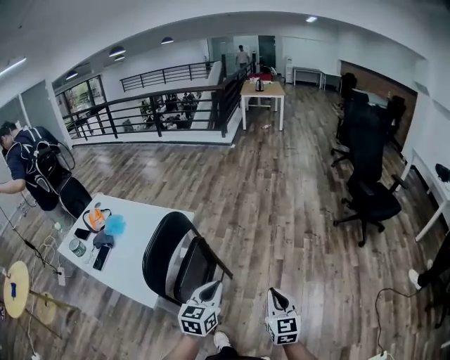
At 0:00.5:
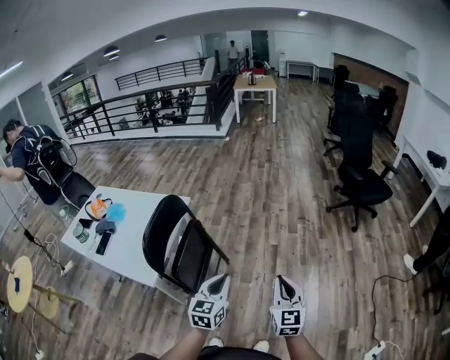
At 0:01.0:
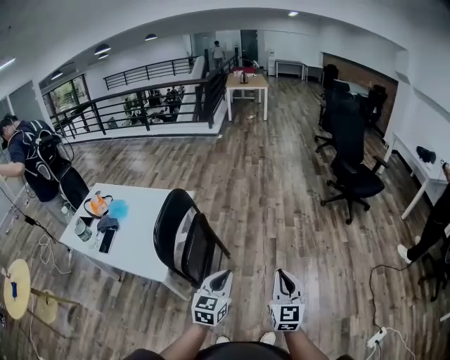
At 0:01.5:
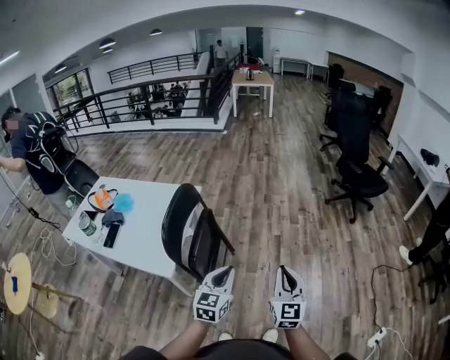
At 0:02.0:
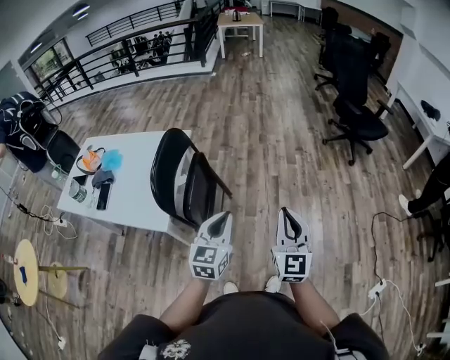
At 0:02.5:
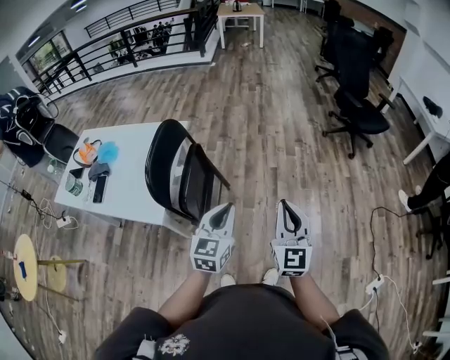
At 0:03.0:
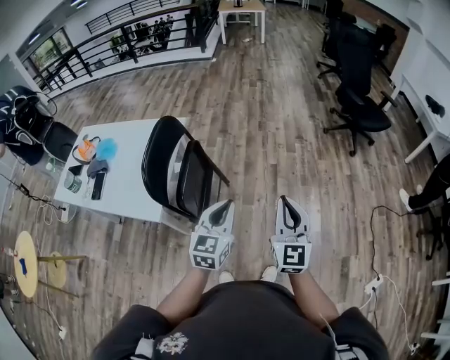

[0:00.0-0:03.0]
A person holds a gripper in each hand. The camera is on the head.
0:00.0 to 0:01.5: Both grippers travel together backward, approximately 15 cm.
0:01.5 to 0:03.0: The left gripper changes place by about 5 cm.

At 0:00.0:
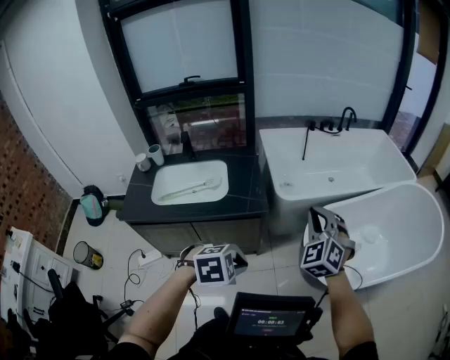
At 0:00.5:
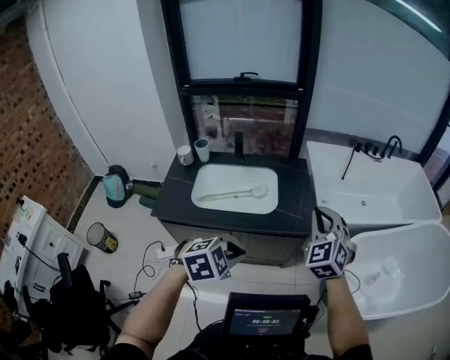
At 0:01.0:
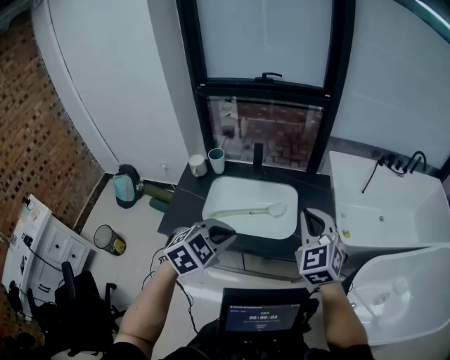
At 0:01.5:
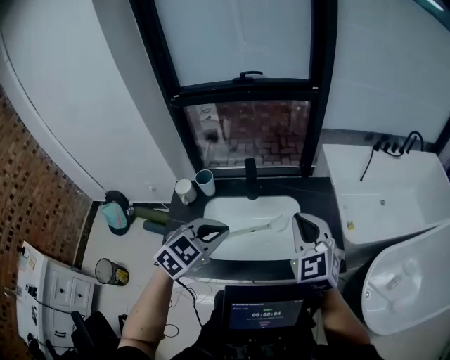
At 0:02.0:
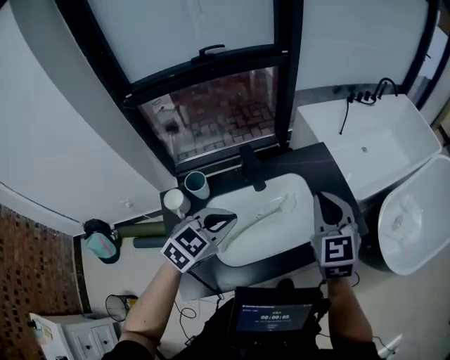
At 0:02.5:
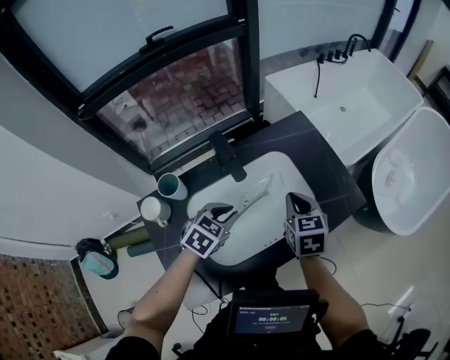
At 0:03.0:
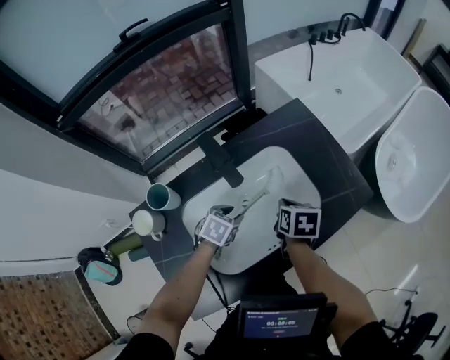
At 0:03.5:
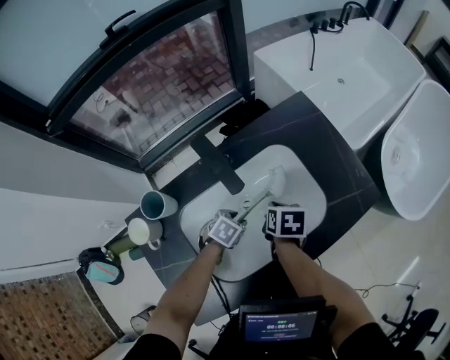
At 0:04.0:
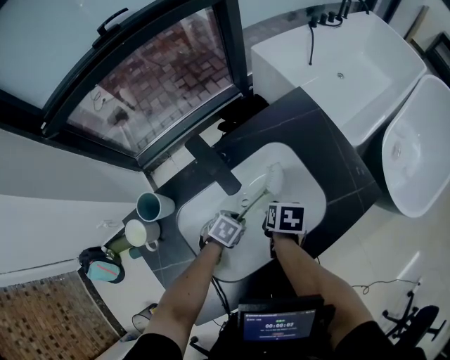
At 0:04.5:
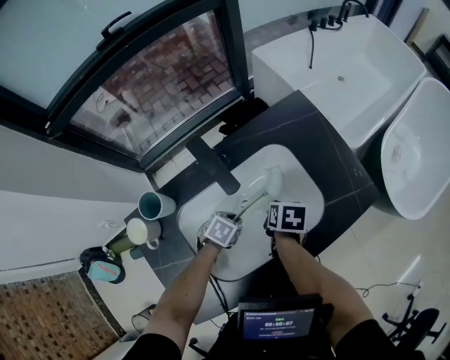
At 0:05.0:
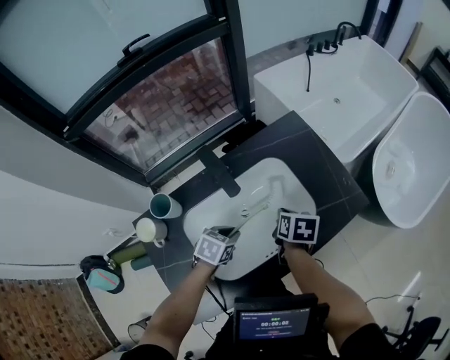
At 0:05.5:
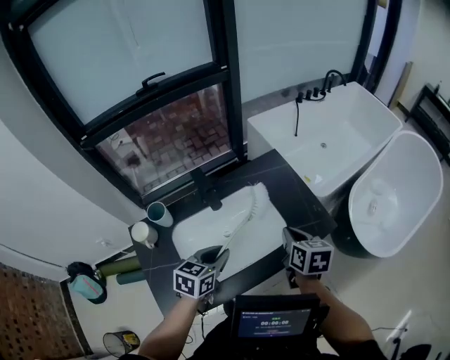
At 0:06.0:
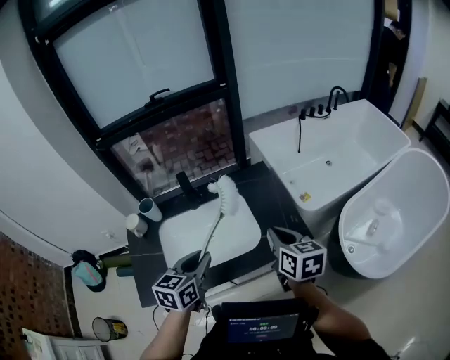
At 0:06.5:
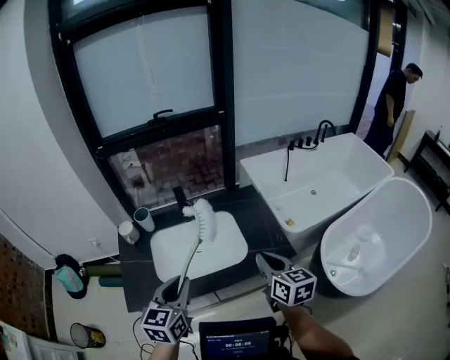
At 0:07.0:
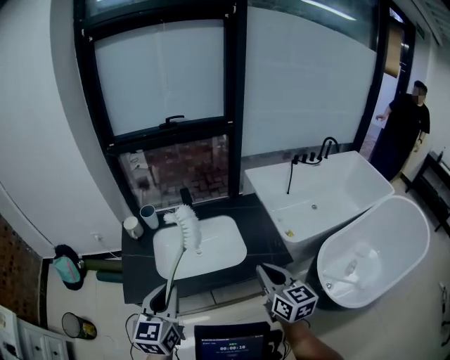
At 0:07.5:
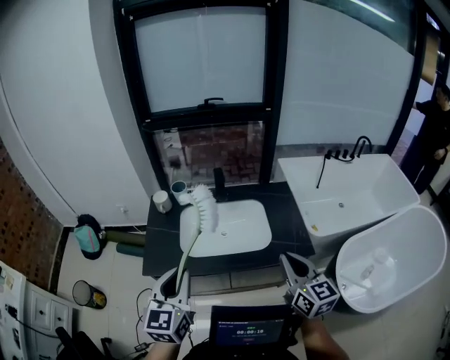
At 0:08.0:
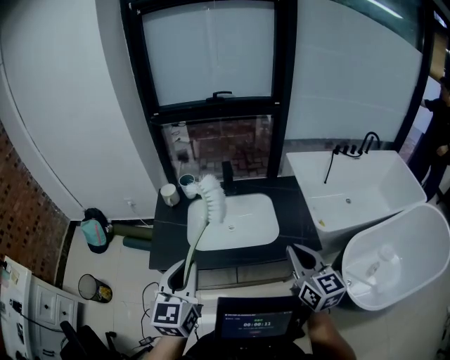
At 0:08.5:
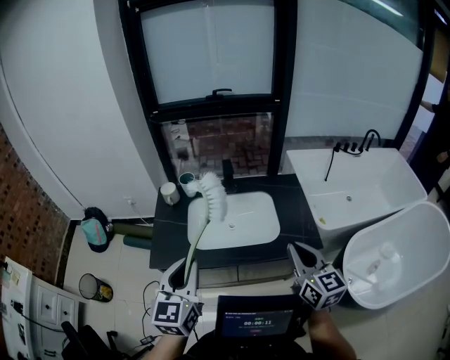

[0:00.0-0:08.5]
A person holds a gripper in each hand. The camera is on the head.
0:00.0 to 0:02.0: The pair of grippers is taken some 90 cm. The right gripper swivels about 40 degrees. The left gripper turns by approximately 30 degrees.
0:02.0 to 0:04.0: The right gripper is displaced downward by roughly 40 cm, and angles its fingers downward, by approximately 50 degrees; the left gripper shifts roughly 50 cm downward and forward, tilts its fingers some 40 degrees downward, and opens up.
0:04.0 to 0:06.5: The pair of grippers is taken some 40 cm. Both grippers move upward, some 50 cm. The left gripper tips its fingers upward by some 50 degrees; the right gripper angles its fingers upward, by approximately 50 degrees.
0:06.5 to 0:08.5: Both grippers move backward and to the left, approximately 15 cm. The left gripper changes its angle by about 20 degrees.

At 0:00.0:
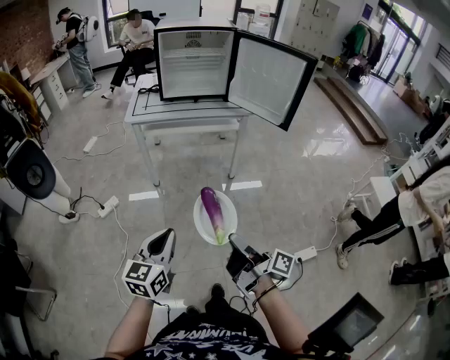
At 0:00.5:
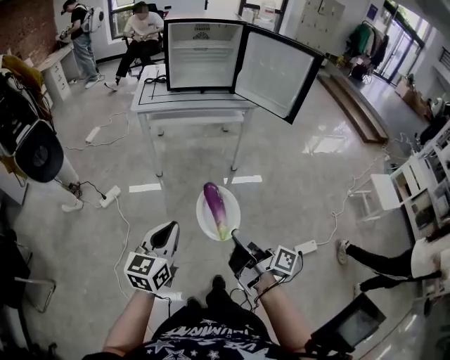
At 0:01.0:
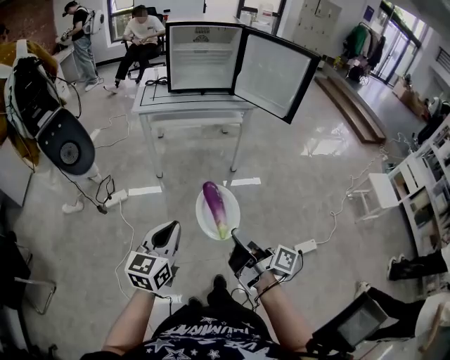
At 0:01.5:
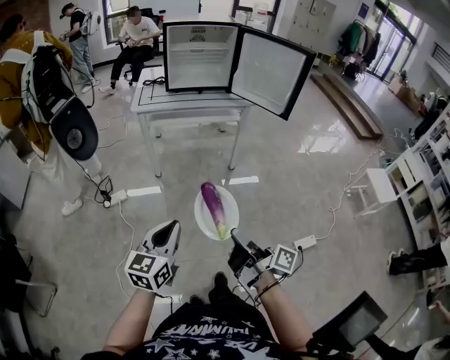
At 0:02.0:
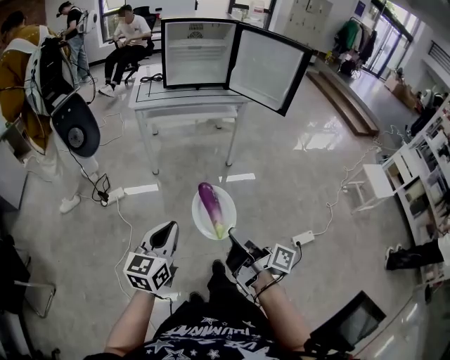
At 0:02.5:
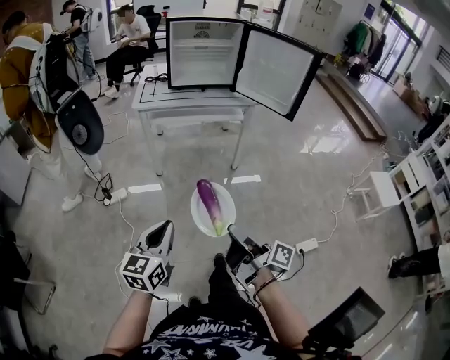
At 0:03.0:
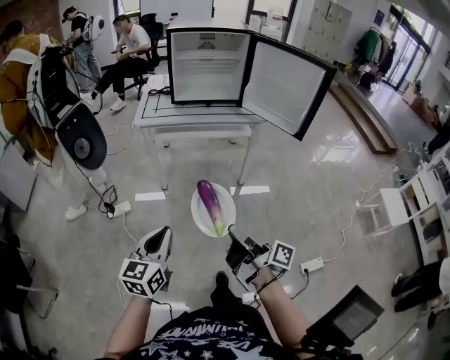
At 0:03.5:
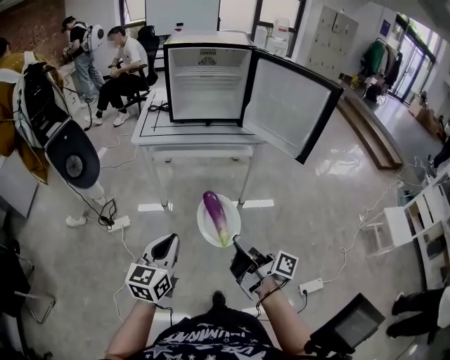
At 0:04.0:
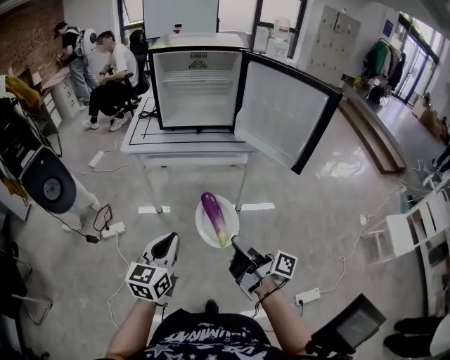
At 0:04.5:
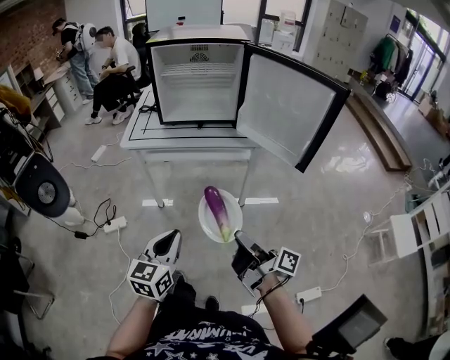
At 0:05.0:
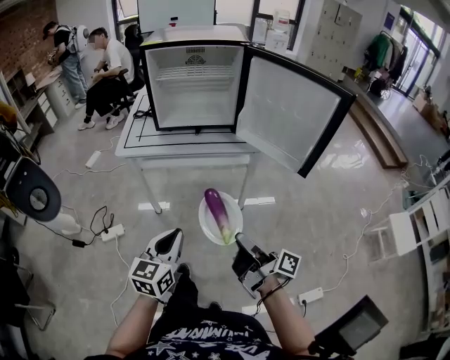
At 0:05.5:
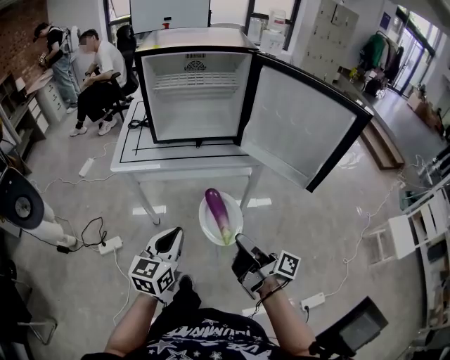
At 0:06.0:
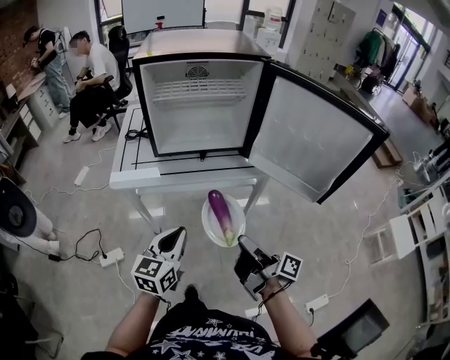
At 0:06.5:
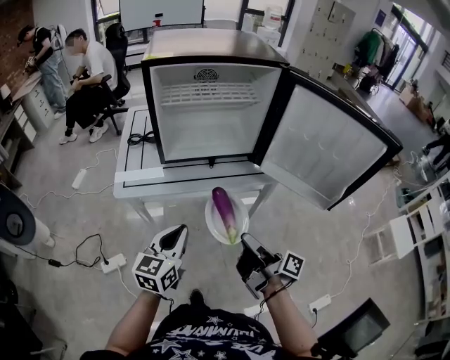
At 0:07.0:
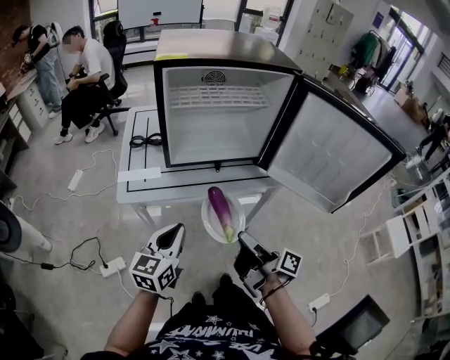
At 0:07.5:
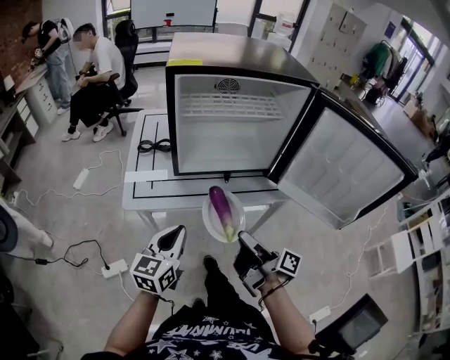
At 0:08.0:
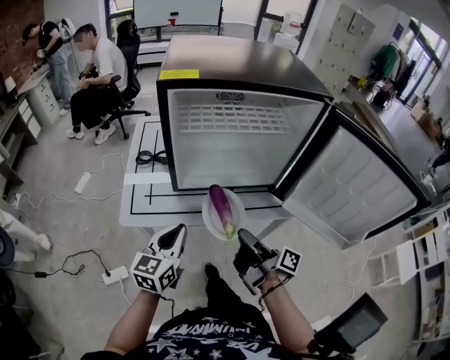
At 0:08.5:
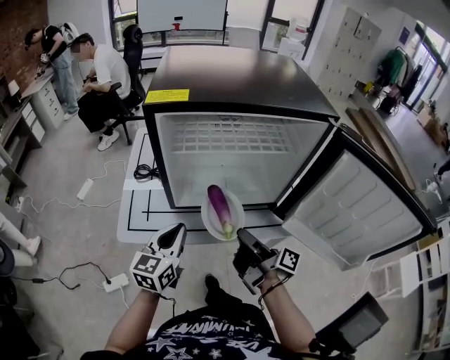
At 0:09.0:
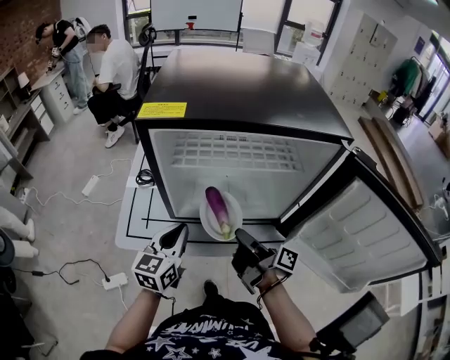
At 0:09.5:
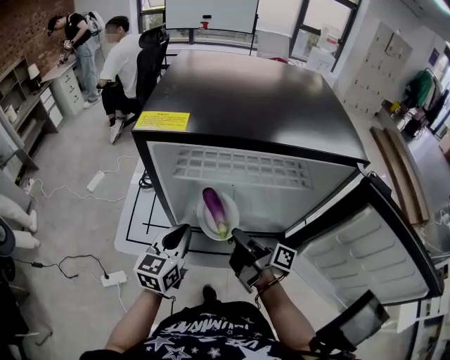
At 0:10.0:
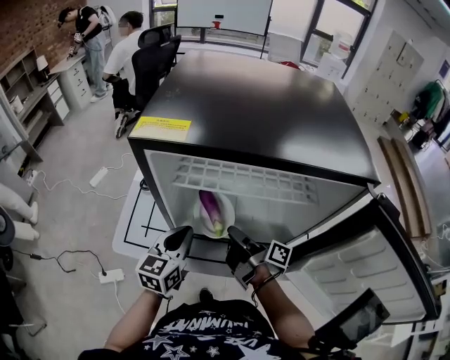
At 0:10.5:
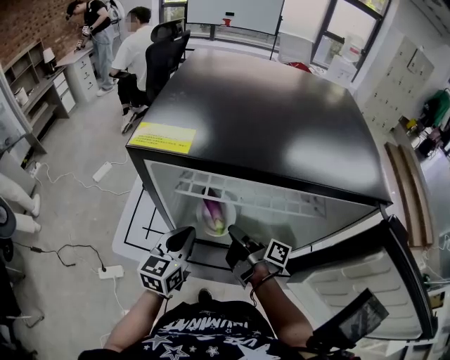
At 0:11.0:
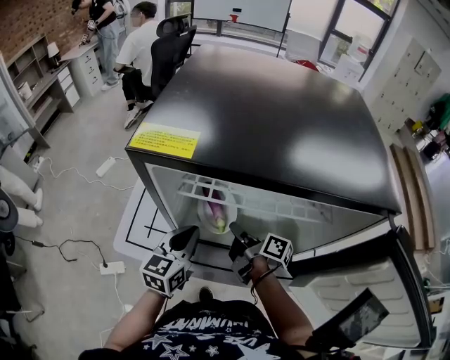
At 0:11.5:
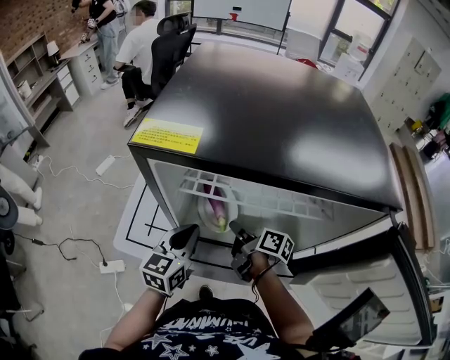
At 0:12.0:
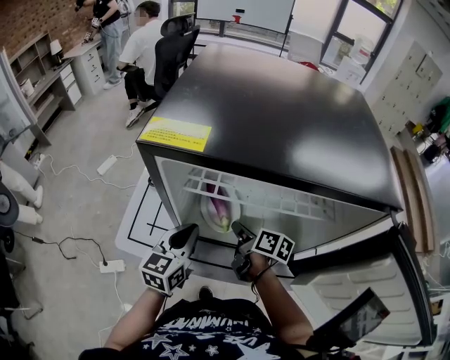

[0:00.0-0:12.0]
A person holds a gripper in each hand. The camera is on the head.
0:00.0 to 0:02.0: The left gripper shifts by some 10 cm.
0:02.0 to 0:04.0: The left gripper ends up about 30 cm from where it was.
0:04.0 to 0:06.0: The left gripper shifts by about 25 cm.
0:06.0 to 0:08.0: The left gripper shifts by roughly 20 cm.
0:08.0 to 0:10.0: The left gripper shifts by roughly 20 cm.

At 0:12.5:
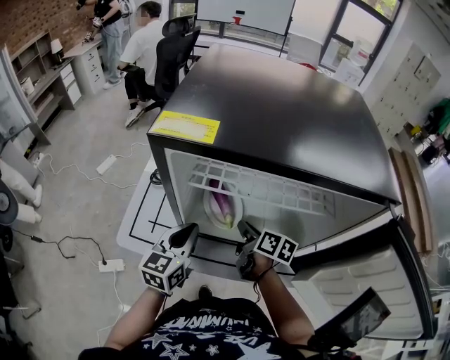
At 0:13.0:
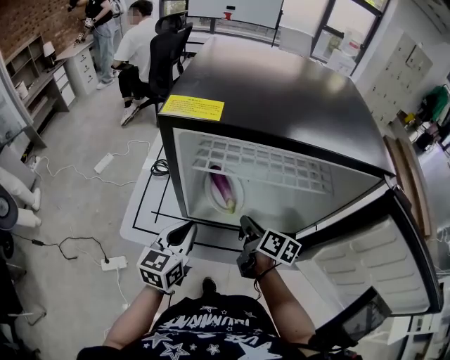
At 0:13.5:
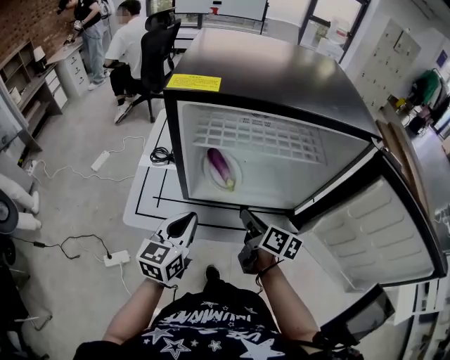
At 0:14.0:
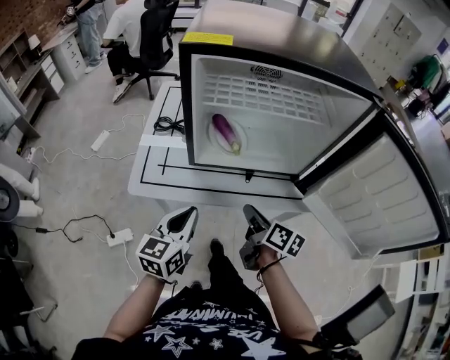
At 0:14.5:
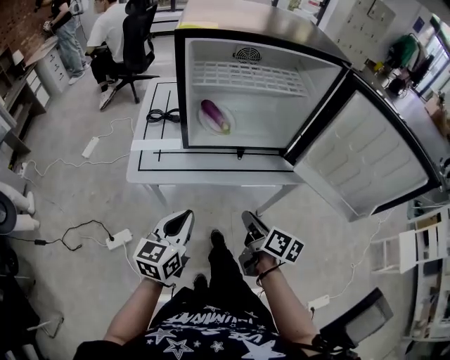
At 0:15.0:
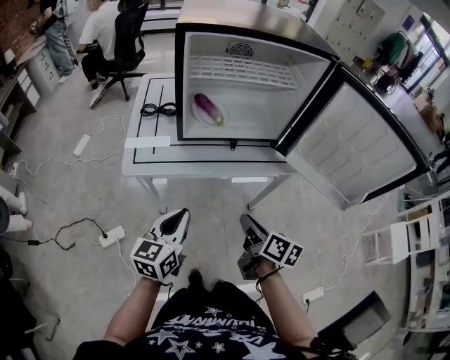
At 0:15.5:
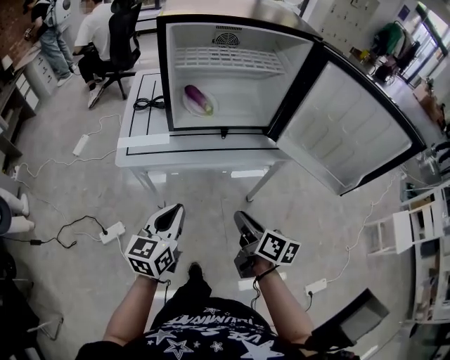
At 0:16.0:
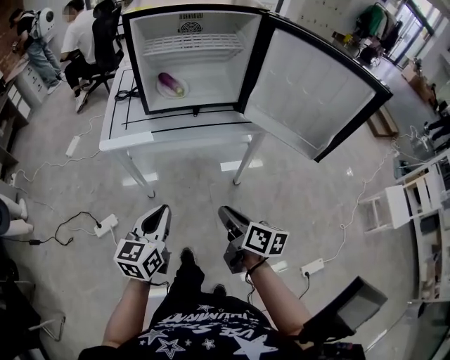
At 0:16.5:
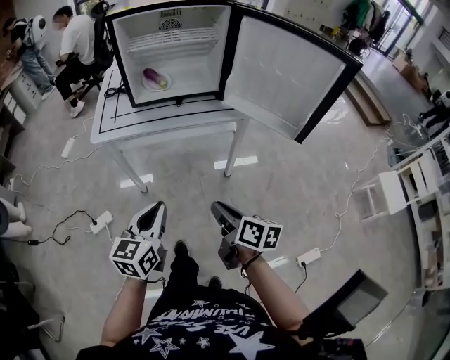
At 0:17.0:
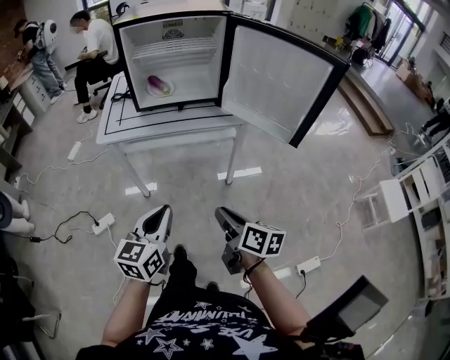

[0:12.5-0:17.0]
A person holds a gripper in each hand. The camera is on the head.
0:12.5 to 0:14.5: The left gripper changes place by about 25 cm.
0:14.5 to 0:17.0: The left gripper shifts by some 30 cm.
